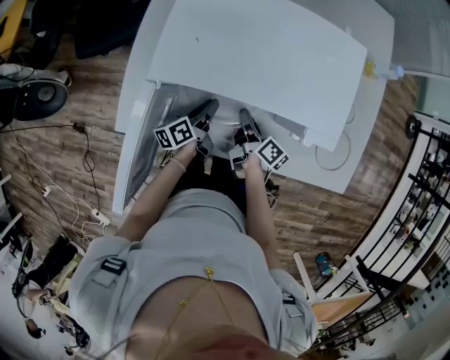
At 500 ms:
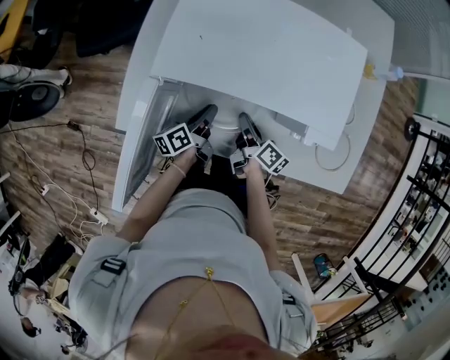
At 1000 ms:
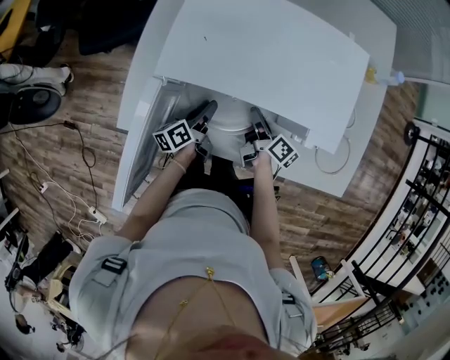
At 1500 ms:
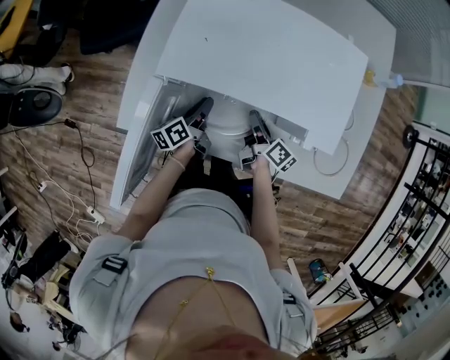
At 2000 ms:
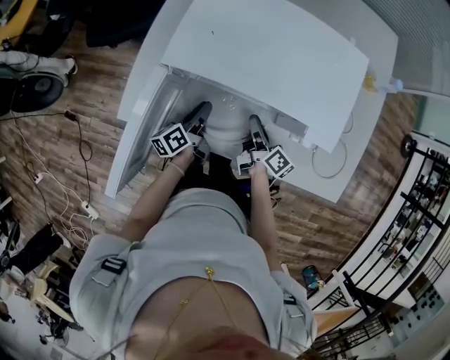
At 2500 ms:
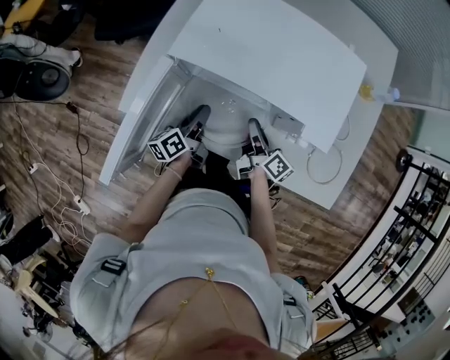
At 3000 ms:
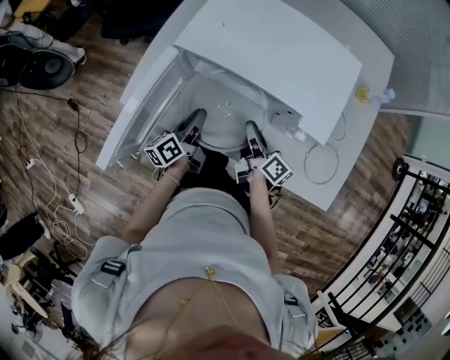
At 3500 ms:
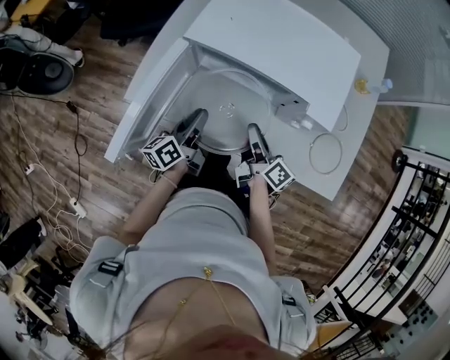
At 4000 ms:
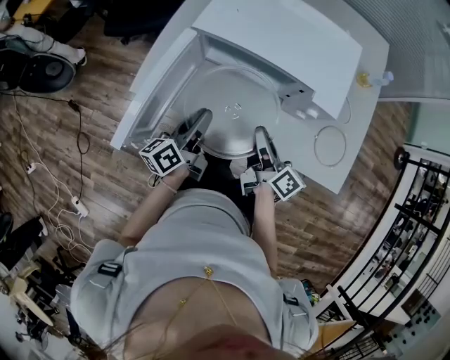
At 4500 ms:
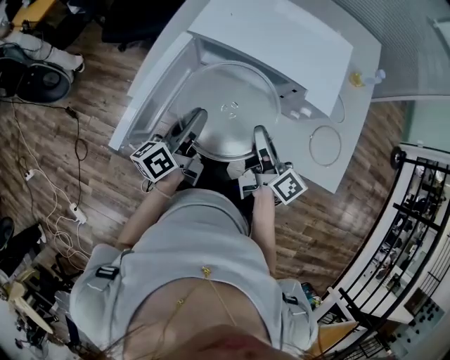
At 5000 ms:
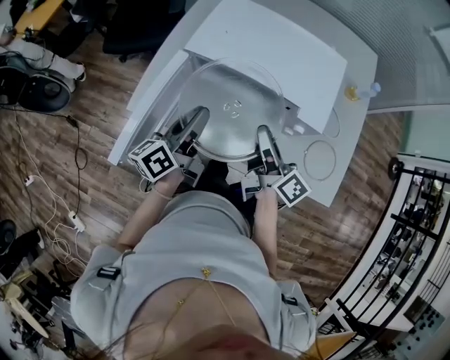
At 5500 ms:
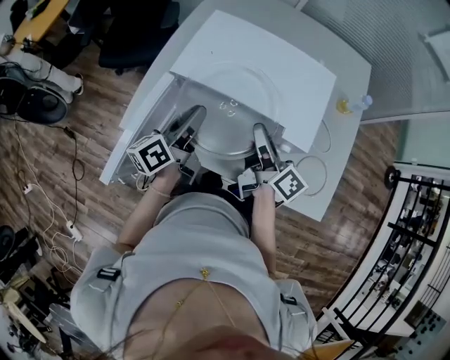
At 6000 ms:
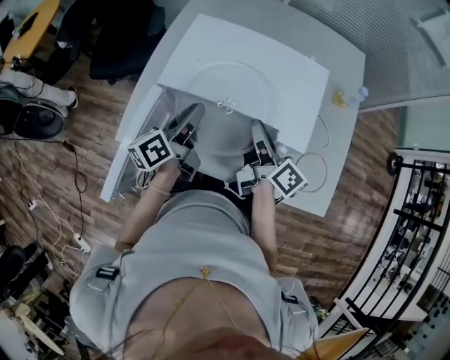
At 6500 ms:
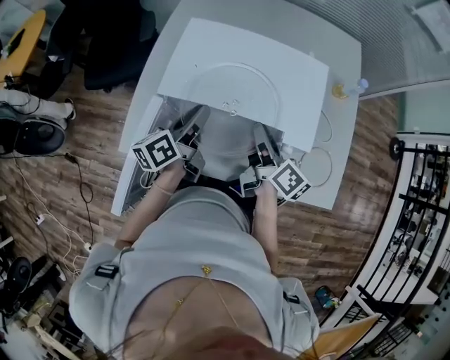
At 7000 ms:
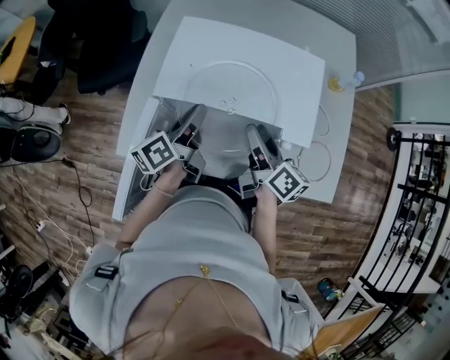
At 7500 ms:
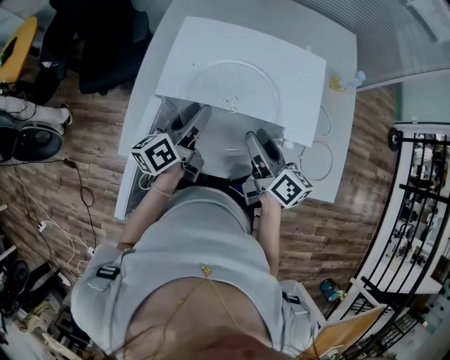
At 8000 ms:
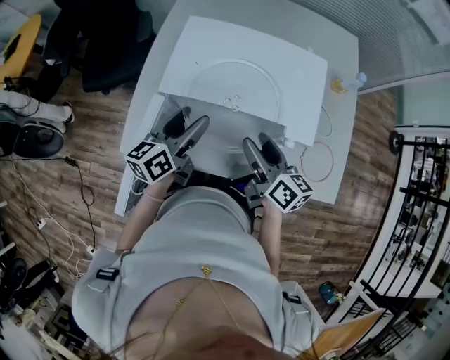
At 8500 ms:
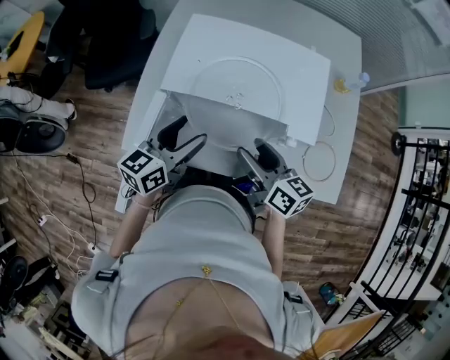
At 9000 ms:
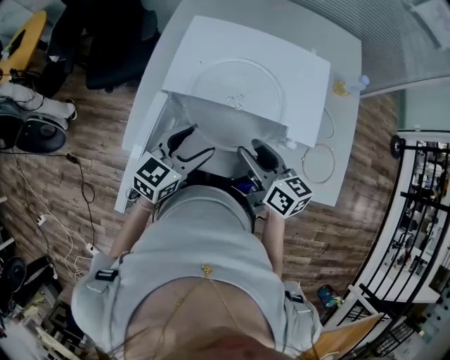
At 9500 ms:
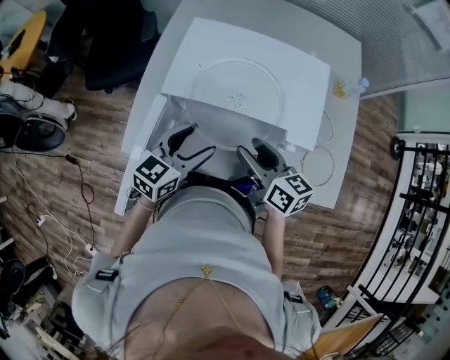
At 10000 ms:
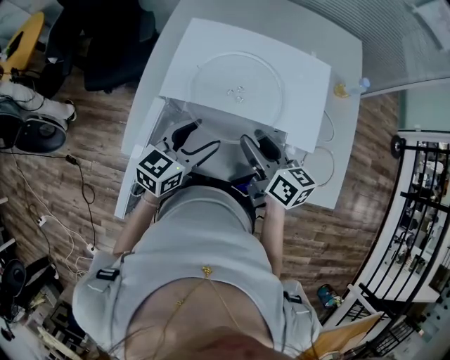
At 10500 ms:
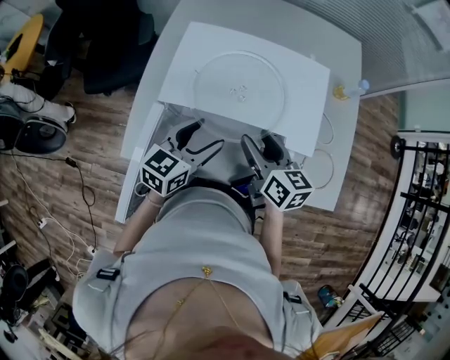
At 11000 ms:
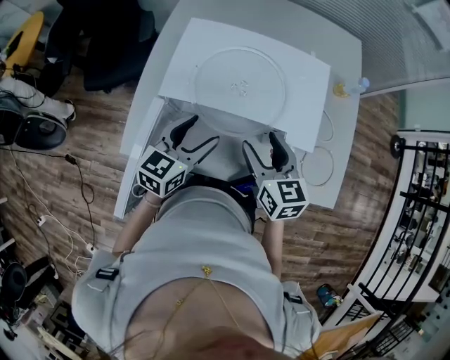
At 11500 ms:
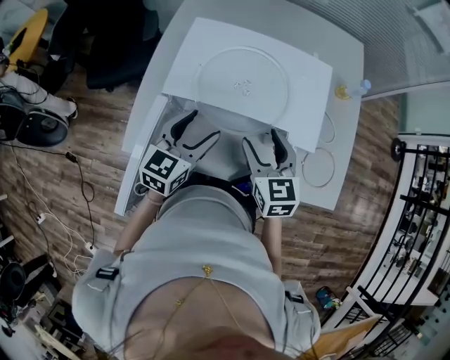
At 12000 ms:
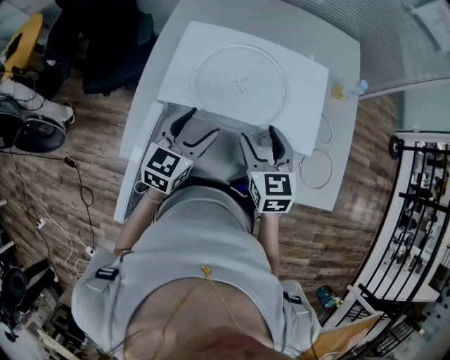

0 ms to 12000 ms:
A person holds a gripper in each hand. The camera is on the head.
0 ms to 2000 ms: The grippers stay close to where they were, moving slightly.
2000 ms to 4000 ms: The two grippers go some 20 cm upward and backward.
4000 ms to 6000 ms: Both grippers travel together forward and upward, approximately 15 cm.
6000 ms to 8000 ms: The left gripper rotates roughly 20 degrees, and opens up; the right gripper ends up approximately 5 cm from where it was, and opens up.
8000 ms to 10000 ms: The left gripper swivels approximately 30 degrees.
10000 ms to 12000 ms: The right gripper changes its angle by approximately 40 degrees.

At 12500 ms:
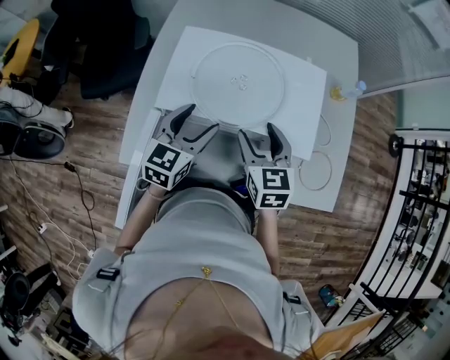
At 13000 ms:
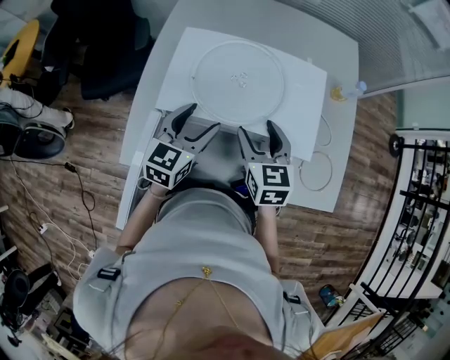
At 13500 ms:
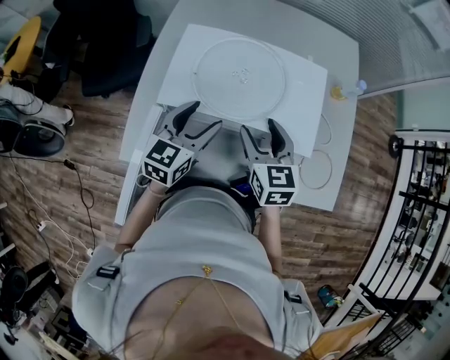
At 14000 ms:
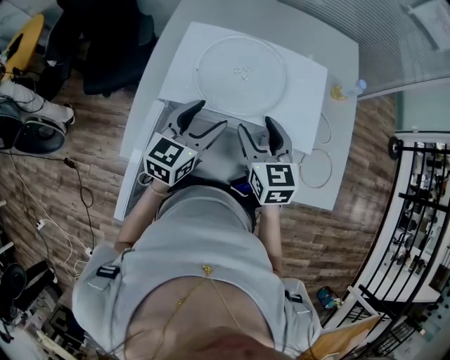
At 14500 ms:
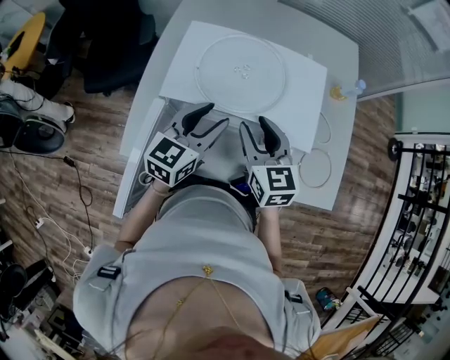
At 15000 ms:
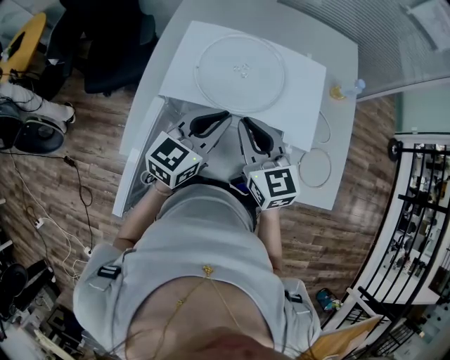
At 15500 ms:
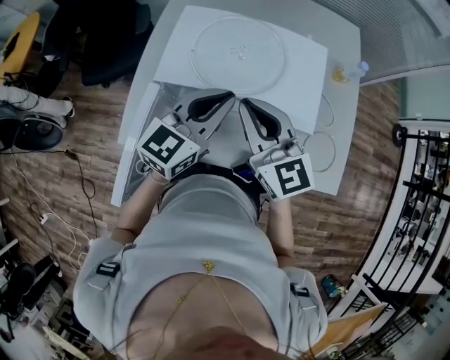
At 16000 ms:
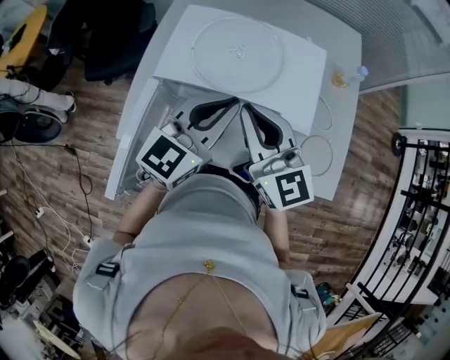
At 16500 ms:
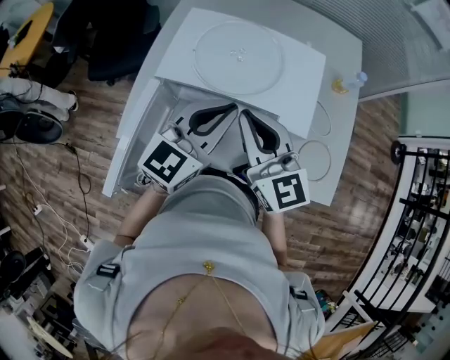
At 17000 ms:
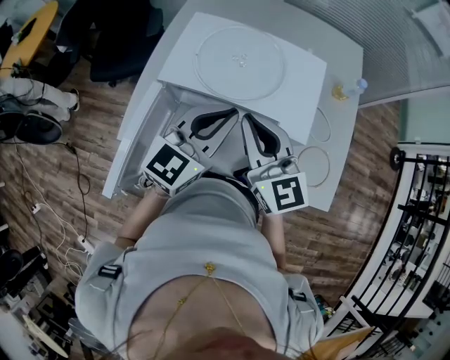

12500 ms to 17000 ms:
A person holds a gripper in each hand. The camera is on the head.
12500 ms to 14500 ms: There are only small adjustments of the grippers.
14500 ms to 17000 ms: The left gripper goes some 10 cm upward and to the right, and closes. The right gripper travels upward by approximately 10 cm, rotates approximately 20 degrees, and closes.

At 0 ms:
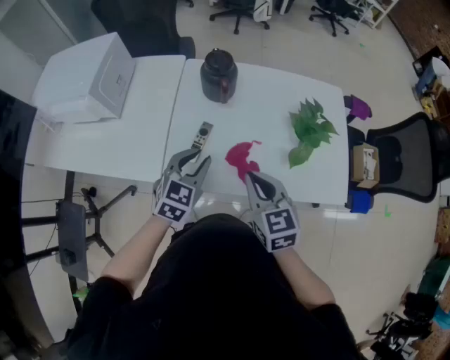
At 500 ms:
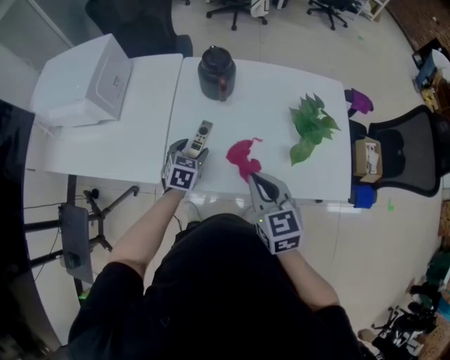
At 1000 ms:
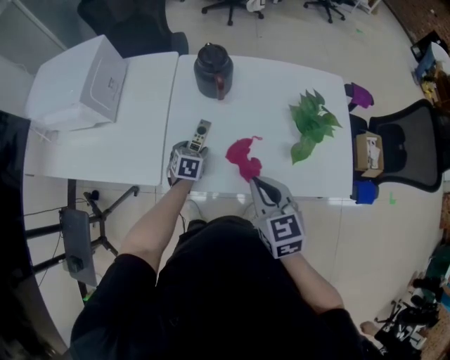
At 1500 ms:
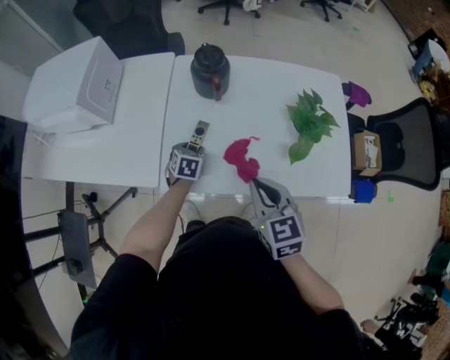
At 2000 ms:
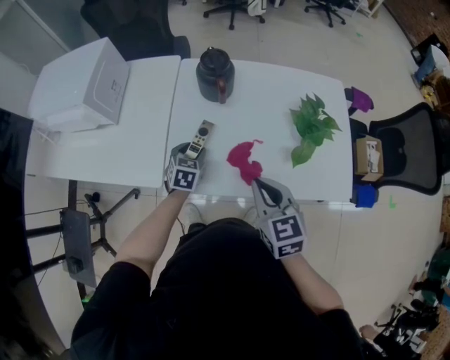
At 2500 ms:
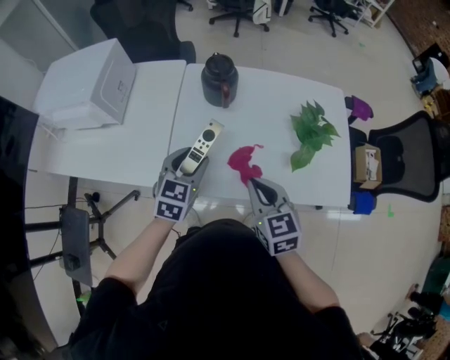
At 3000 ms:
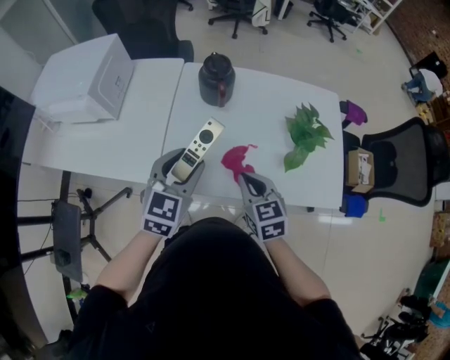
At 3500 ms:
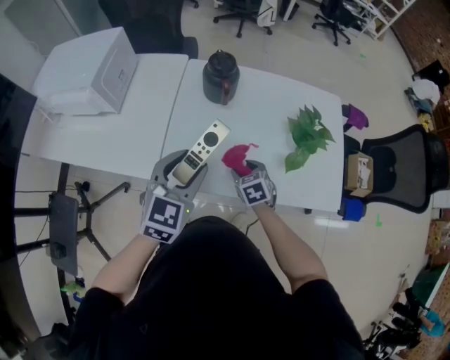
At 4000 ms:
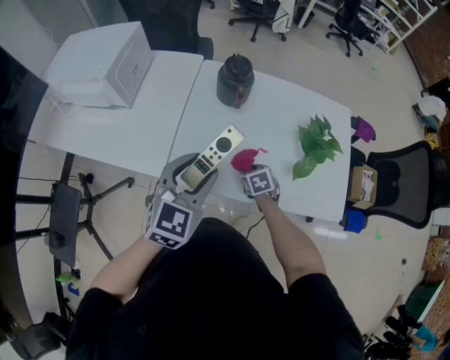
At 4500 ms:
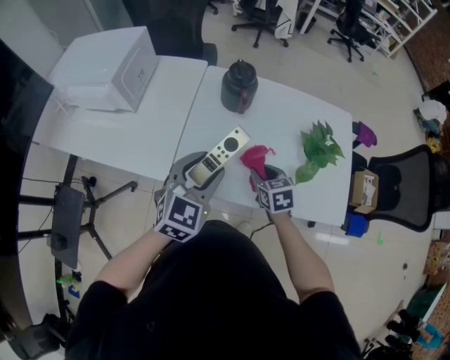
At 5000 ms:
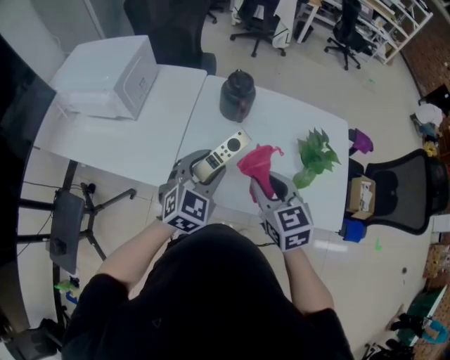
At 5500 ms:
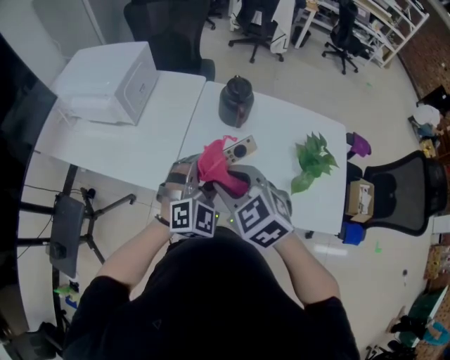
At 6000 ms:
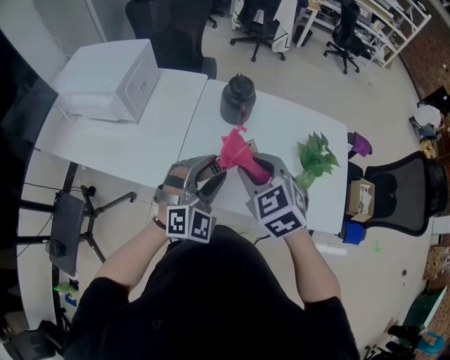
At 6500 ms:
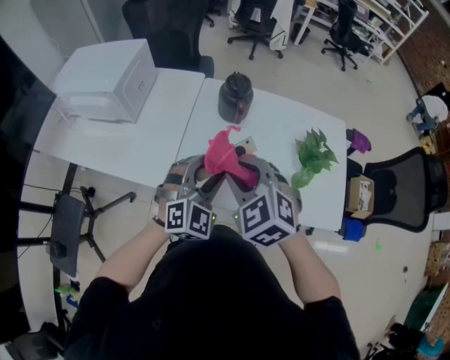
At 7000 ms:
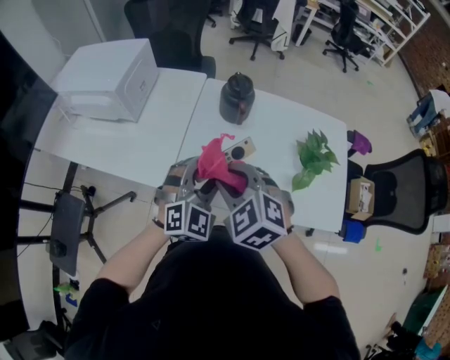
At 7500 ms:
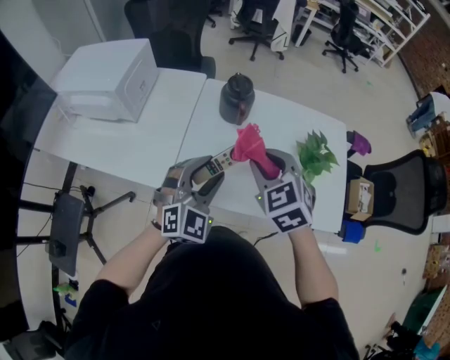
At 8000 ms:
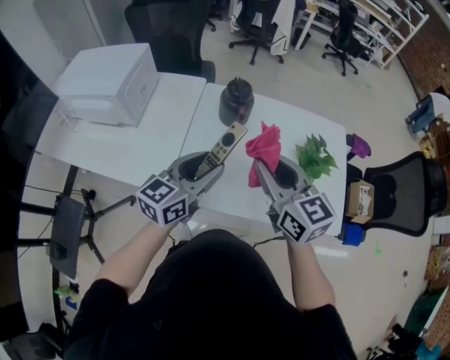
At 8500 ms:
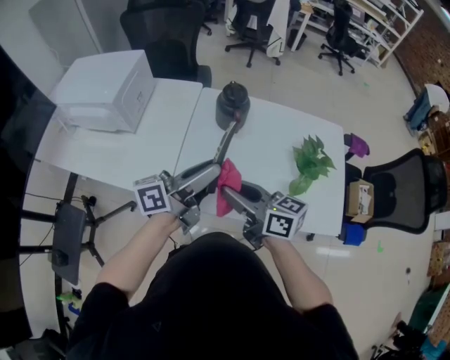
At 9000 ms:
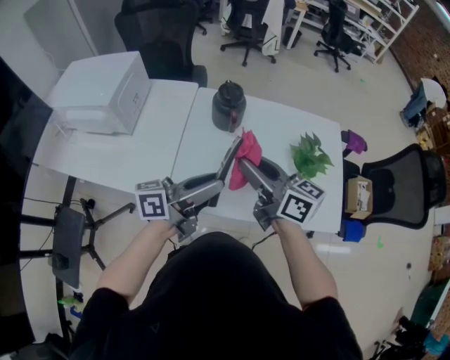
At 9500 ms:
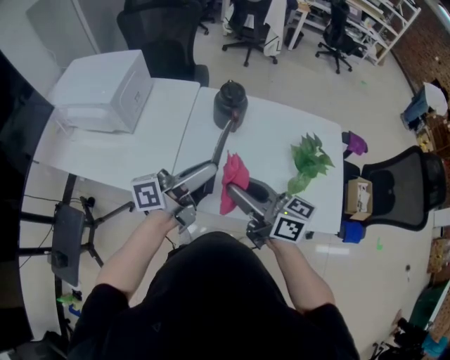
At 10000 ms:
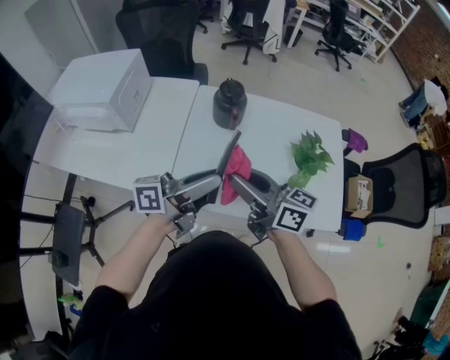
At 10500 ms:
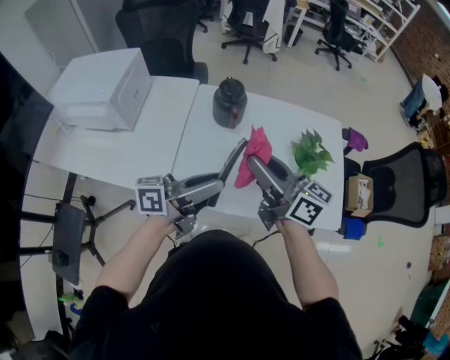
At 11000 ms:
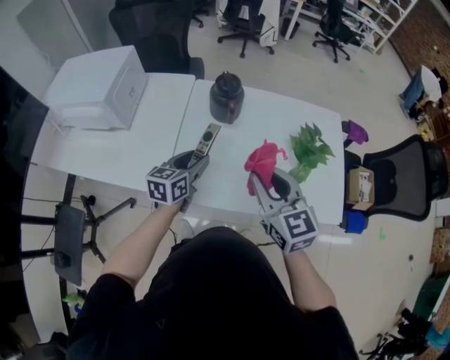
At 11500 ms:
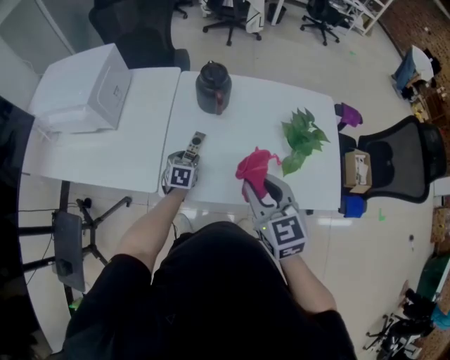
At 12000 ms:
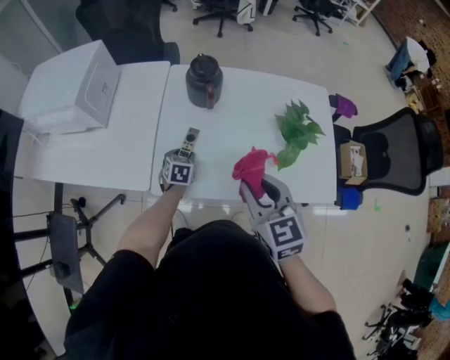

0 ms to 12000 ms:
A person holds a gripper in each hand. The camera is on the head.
0 ms to 2000 ms: The left gripper goes roughly 15 cm downward and forward, swivels about 20 degrees, and opens.
2000 ms to 4000 ms: The left gripper moves upward and backward, approximately 25 cm, and rotates about 20 degrees, while the right gripper heads downward, covering some 25 cm, tilts its fingers some 30 degrees downward, and opens.
4000 ms to 6000 ms: The right gripper moves upward, about 30 cm, and swivels roughly 40 degrees, while the left gripper rotates some 40 degrees.
6000 ms to 8000 ms: The left gripper rolls counterclockwise, seen from behind, by roughly 60 degrees; the right gripper ends up approximately 5 cm from where it was, and swivels roughly 40 degrees.
8000 ms to 10000 ms: The left gripper changes place by about 5 cm, and swivels approximately 50 degrees; the right gripper swivels roughly 40 degrees.
10000 ms to 12000 ms: The left gripper moves downward, roughly 35 cm, and points its fingers roughly 70 degrees further downward. Meanwhile the right gripper moves to the right and downward, roughly 10 cm, and swivels roughly 60 degrees.
